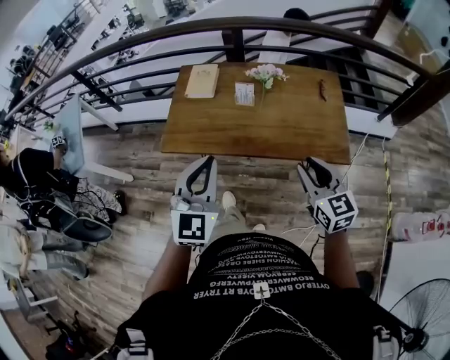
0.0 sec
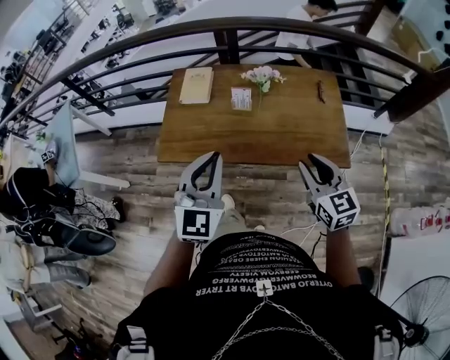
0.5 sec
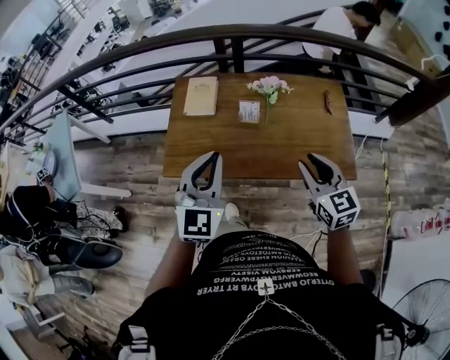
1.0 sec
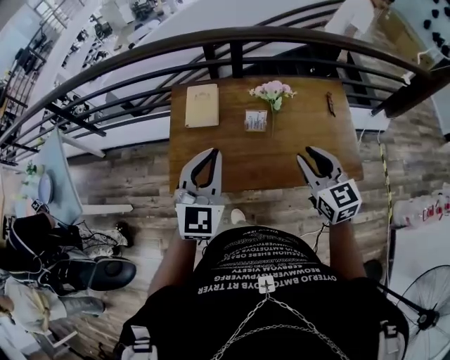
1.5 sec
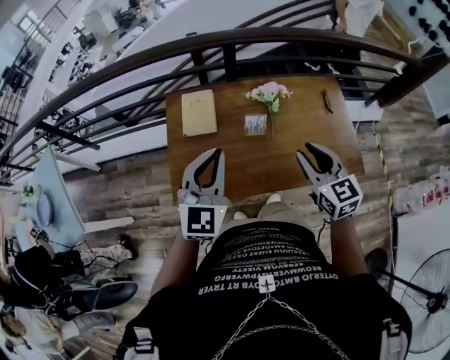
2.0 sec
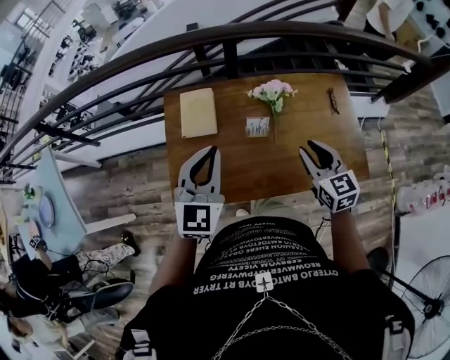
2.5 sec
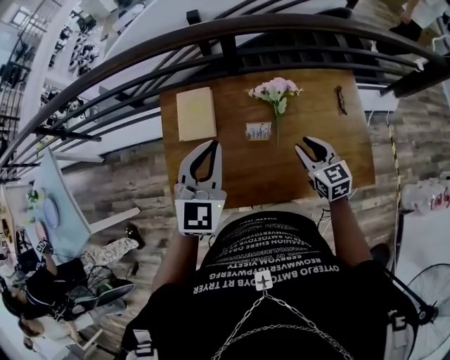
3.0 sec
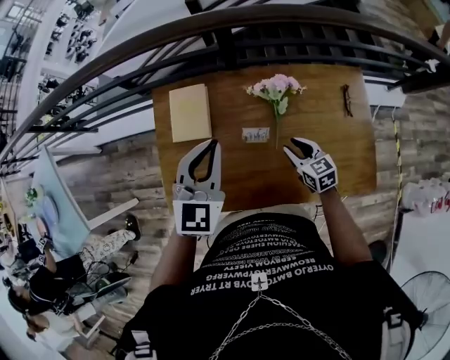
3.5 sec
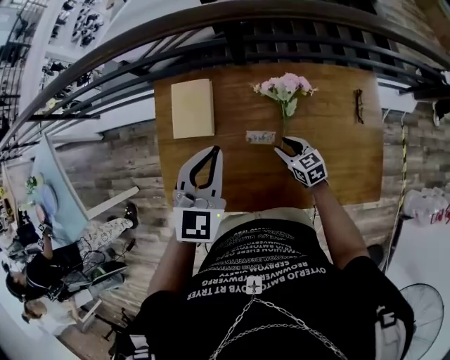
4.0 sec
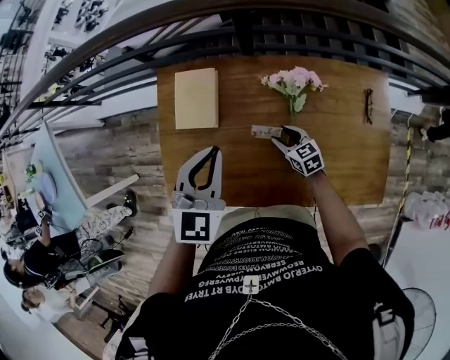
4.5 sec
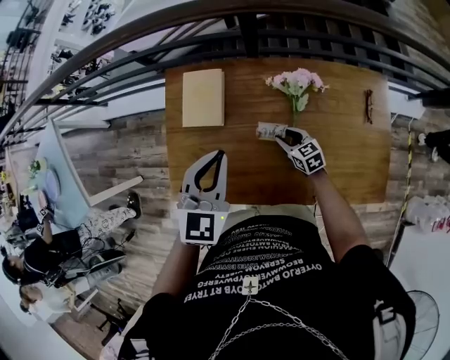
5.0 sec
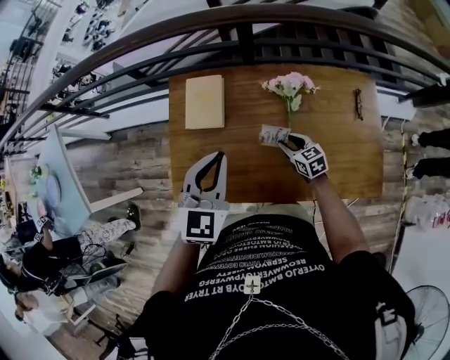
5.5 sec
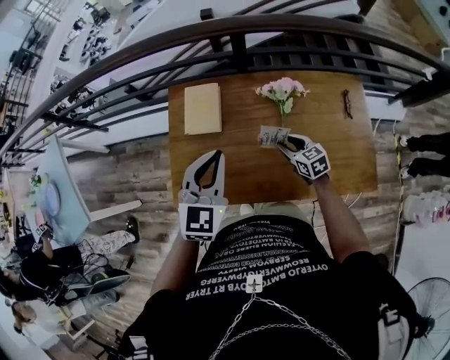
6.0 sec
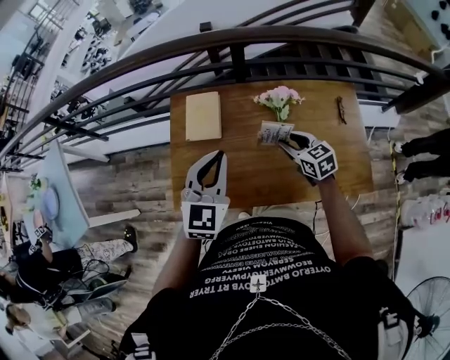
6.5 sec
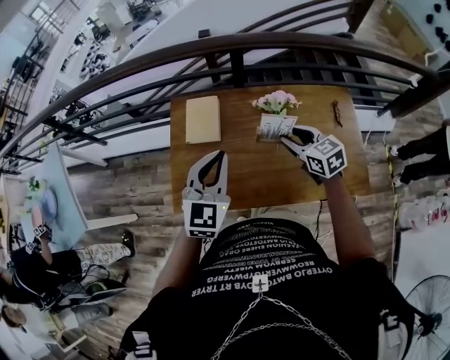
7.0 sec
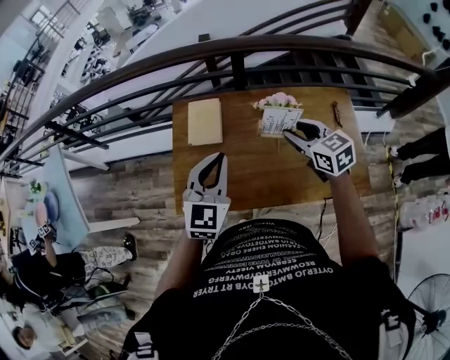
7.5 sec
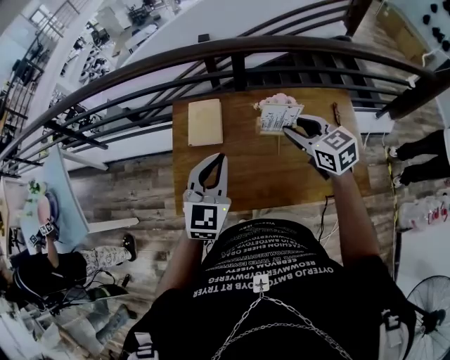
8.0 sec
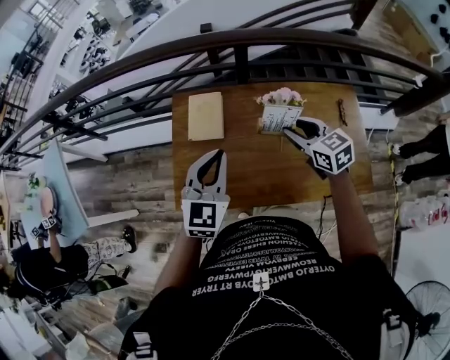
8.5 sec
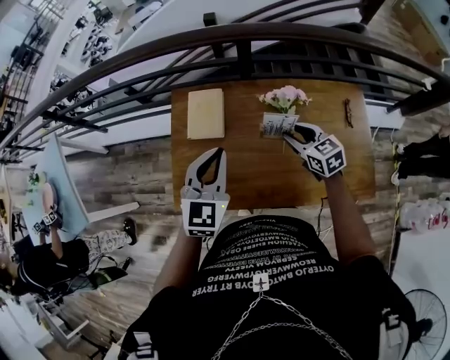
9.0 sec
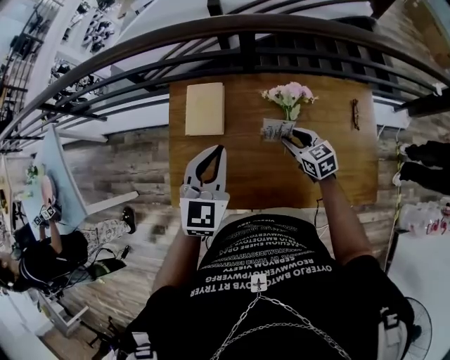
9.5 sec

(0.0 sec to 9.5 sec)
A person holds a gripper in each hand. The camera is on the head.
0.0 sec - 2.0 sec: The right gripper goes roughly 25 cm forward and to the left. Meanwhile the left gripper travels forward by about 25 cm.
2.0 sec - 4.0 sec: The right gripper travels downward and forward by about 35 cm, and turns by approximately 30 degrees. The left gripper goes about 20 cm forward and downward.
4.0 sec - 5.5 sec: The left gripper shifts some 5 cm backward.
5.5 sec - 7.5 sec: The left gripper shifts by about 5 cm. Meanwhile the right gripper heads upward, covering approximately 25 cm.
7.5 sec - 9.5 sec: The right gripper heads downward, covering approximately 20 cm. Meanwhile the left gripper is displaced forward by some 10 cm.

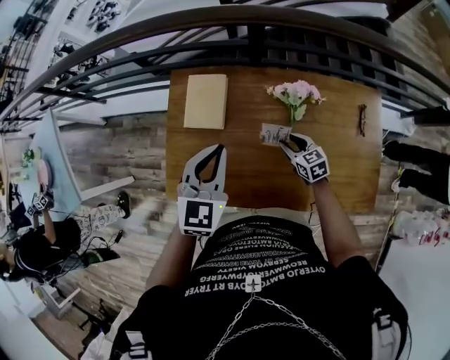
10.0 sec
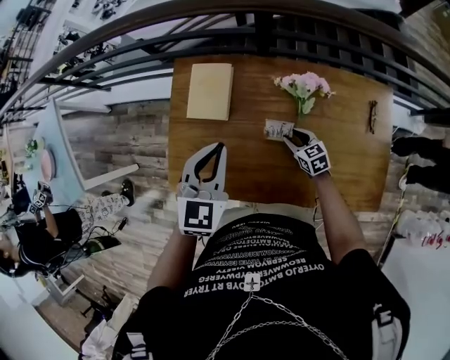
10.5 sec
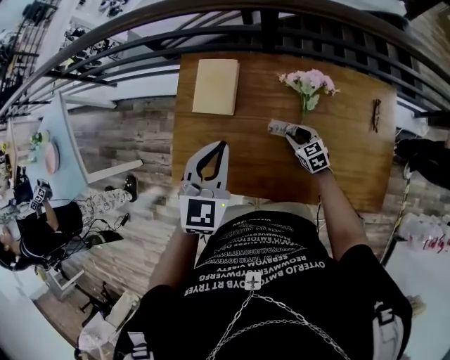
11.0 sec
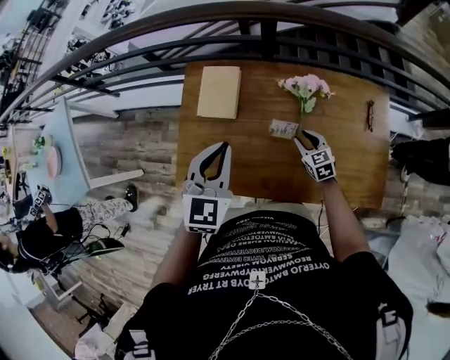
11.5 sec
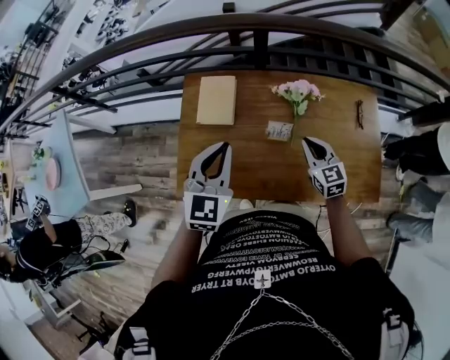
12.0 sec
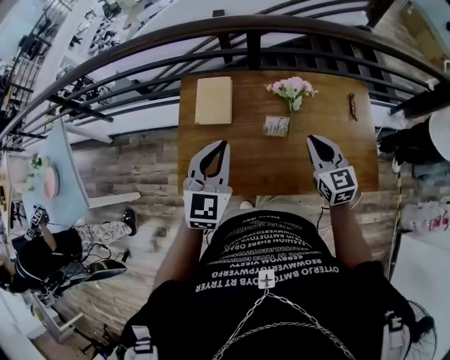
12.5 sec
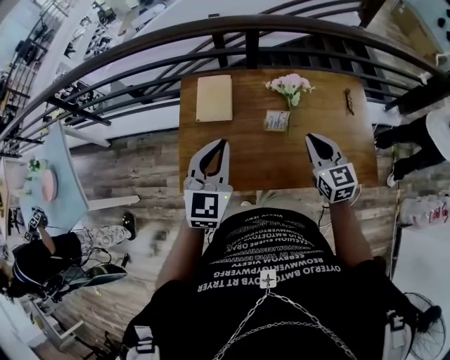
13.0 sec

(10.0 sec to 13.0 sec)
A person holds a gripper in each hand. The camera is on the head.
11.5 sec - 13.0 sec: The right gripper travels upward and backward by about 25 cm, changes its angle by about 20 degrees, and closes its fingers, while the left gripper goes some 5 cm backward.

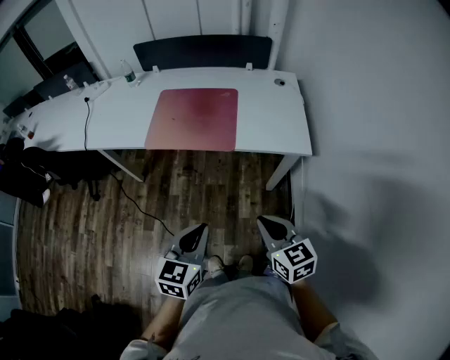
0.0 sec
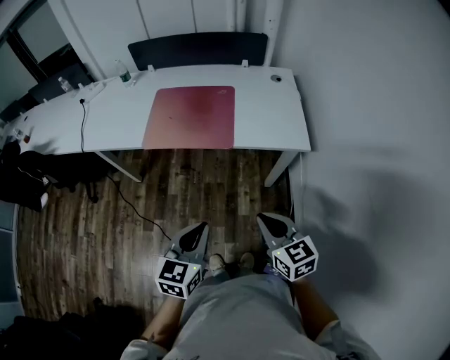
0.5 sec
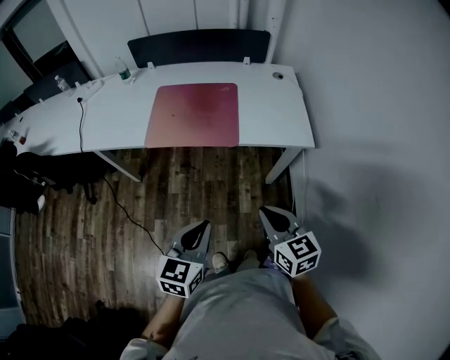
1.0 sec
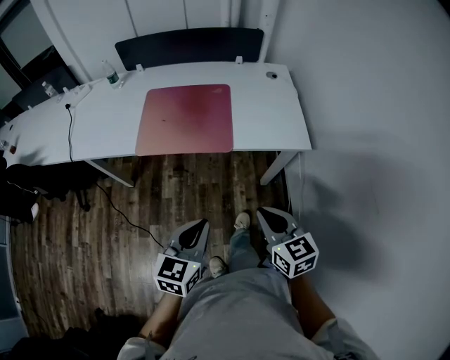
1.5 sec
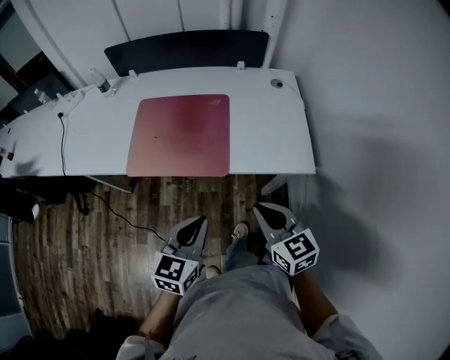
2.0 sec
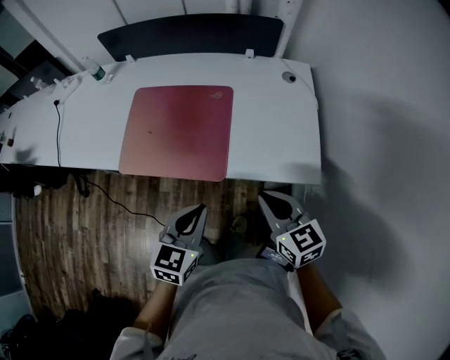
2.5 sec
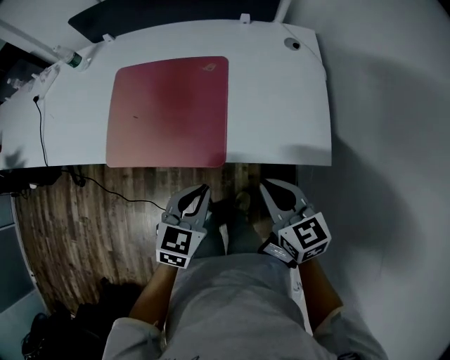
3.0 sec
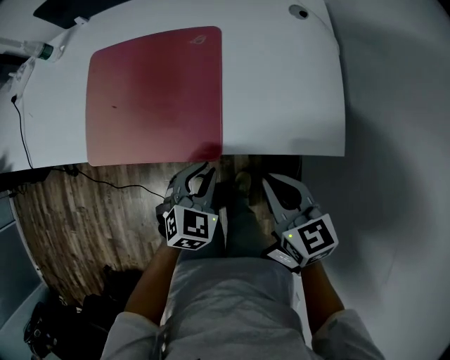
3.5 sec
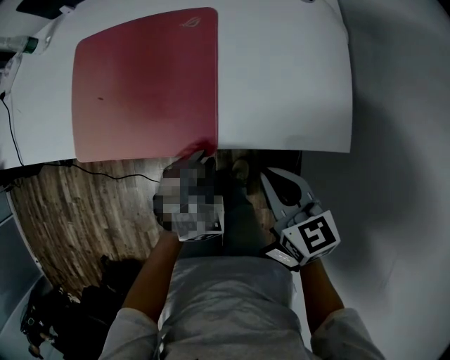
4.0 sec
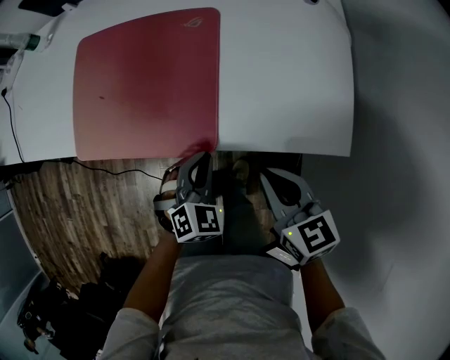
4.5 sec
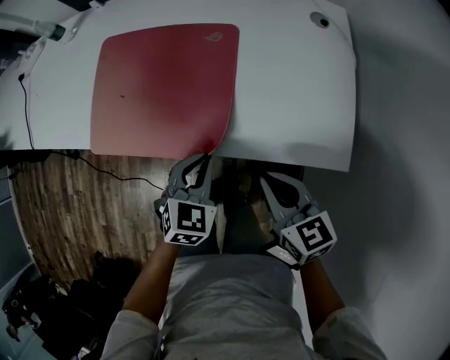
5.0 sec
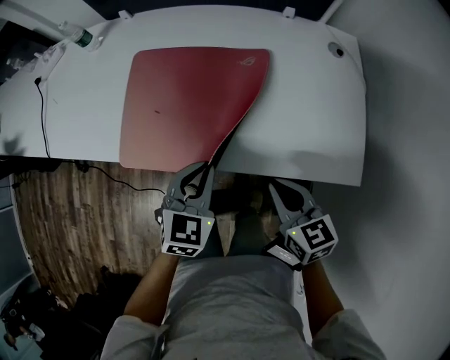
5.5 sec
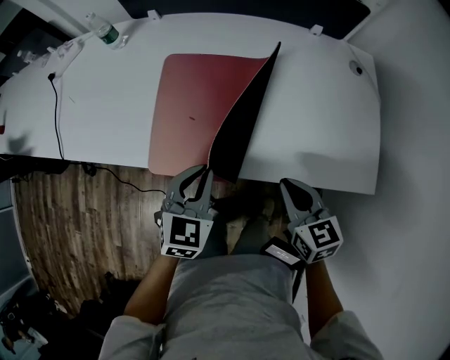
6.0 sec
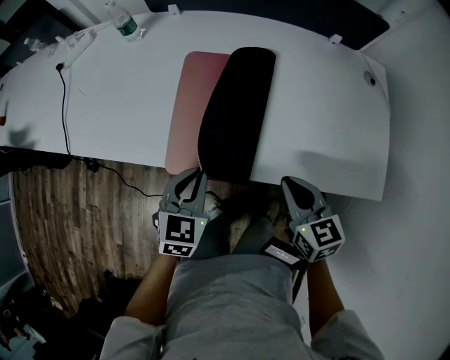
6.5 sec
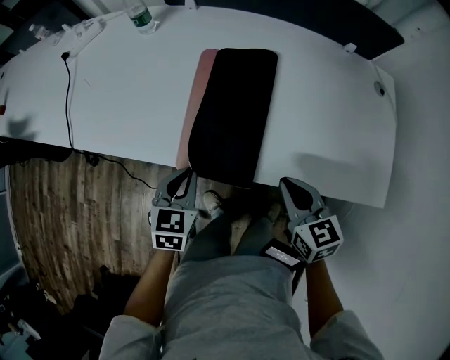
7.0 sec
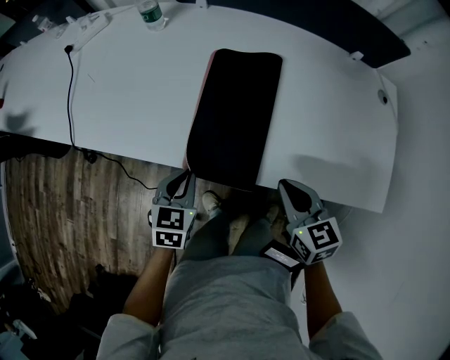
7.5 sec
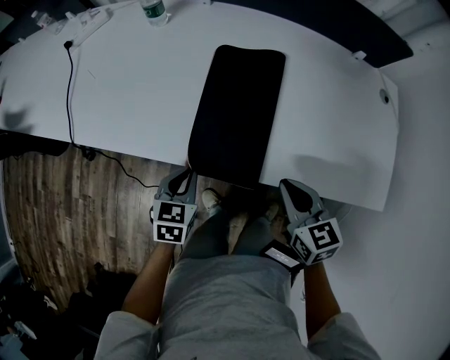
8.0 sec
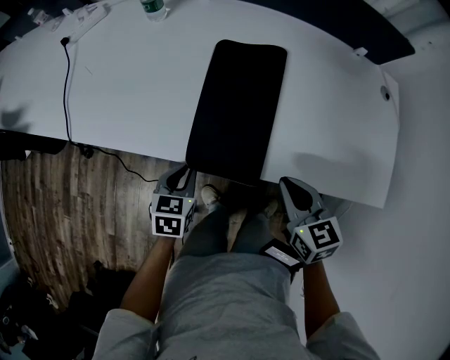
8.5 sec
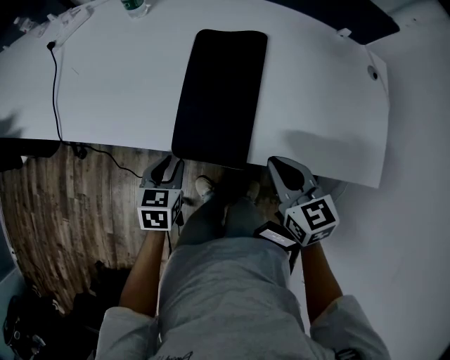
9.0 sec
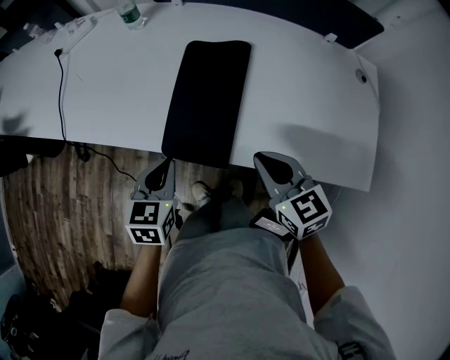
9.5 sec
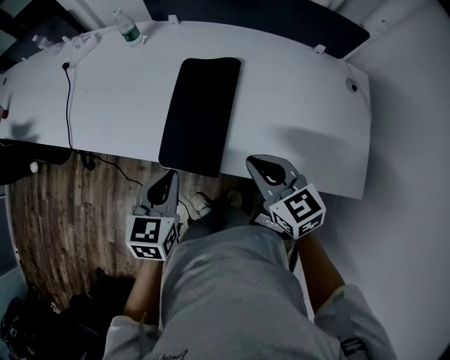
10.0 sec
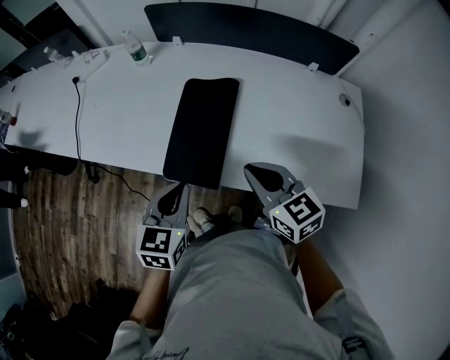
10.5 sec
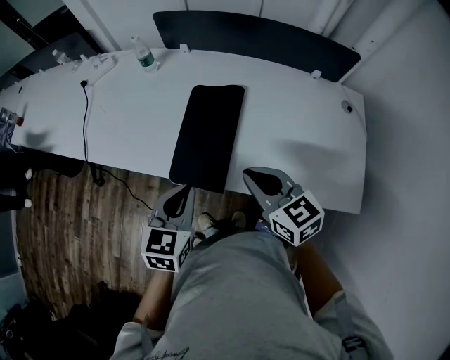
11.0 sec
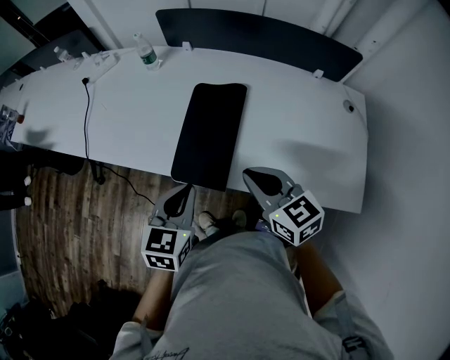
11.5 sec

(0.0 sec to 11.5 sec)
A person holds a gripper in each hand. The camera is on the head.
0.0 sec - 2.0 sec: Both grippers travel together forward, about 20 cm.
2.0 sec - 4.0 sec: The right gripper travels downward and forward by some 20 cm. The left gripper moves downward and forward, roughly 30 cm, swivels roughly 50 degrees, and opens its fingers.
4.0 sec - 6.0 sec: The left gripper is displaced to the left, upward and forward by some 25 cm, swivels roughly 30 degrees, and closes, while the right gripper travels to the left and forward by some 15 cm.
6.0 sec - 7.5 sec: The left gripper heads to the left and downward, covering approximately 20 cm, and changes its angle by approximately 20 degrees, while the right gripper is displaced to the left by approximately 10 cm.
7.5 sec - 9.5 sec: The left gripper is displaced upward by about 5 cm, and opens and closes again.
9.5 sec - 11.5 sec: The left gripper goes some 10 cm upward and to the right. The right gripper moves upward, approximately 10 cm.

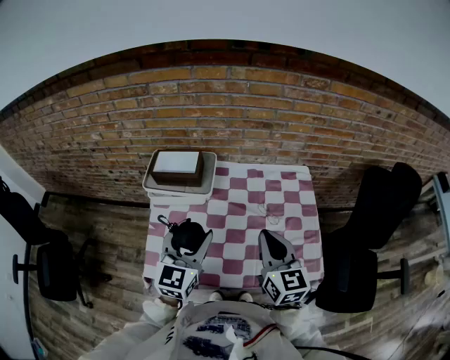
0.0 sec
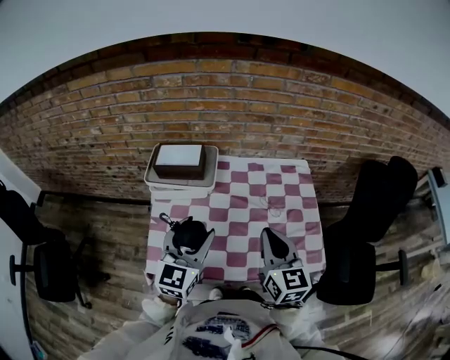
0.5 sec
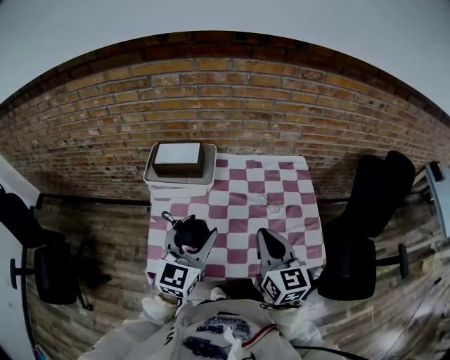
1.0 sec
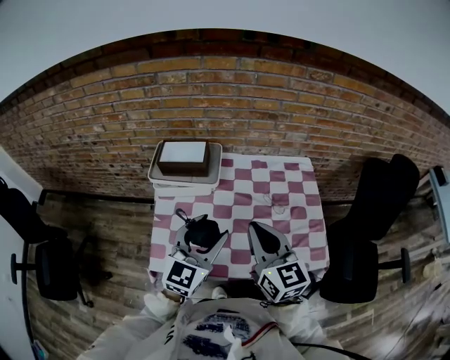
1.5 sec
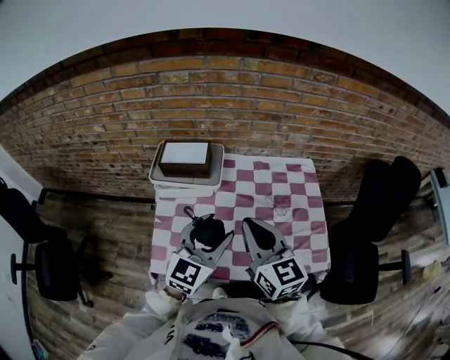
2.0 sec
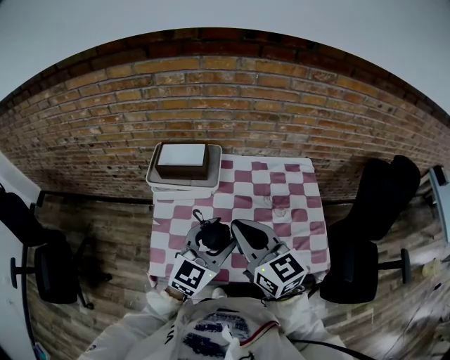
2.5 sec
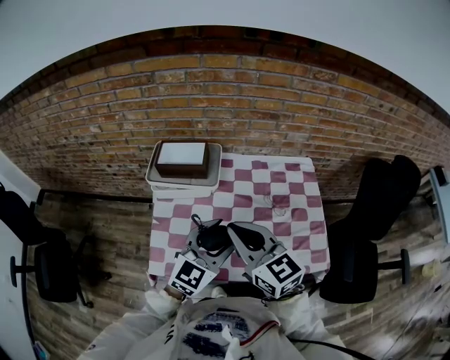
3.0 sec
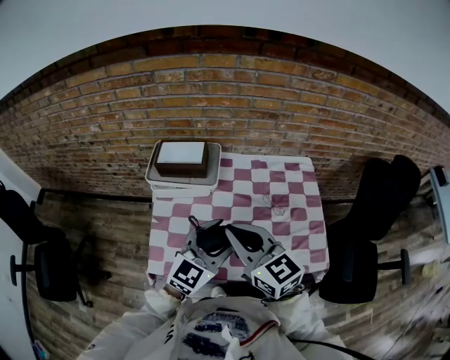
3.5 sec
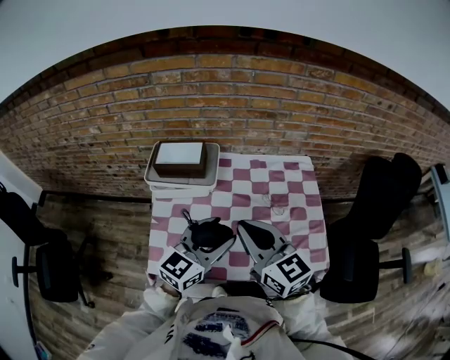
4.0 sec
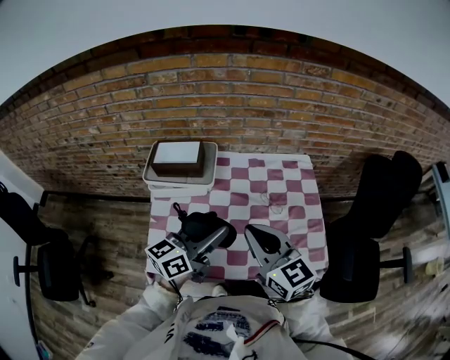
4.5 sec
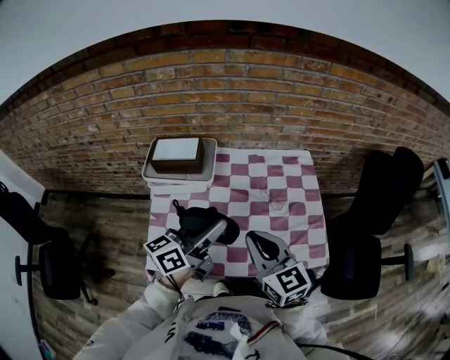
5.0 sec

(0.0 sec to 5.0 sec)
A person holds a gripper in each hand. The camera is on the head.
0.0 sec - 2.5 sec: The left gripper turns by approximately 20 degrees; the right gripper moves to the left, roughly 15 cm.
2.5 sec - 5.0 sec: The right gripper goes roughly 10 cm to the right and downward; the left gripper twists approximately 50 degrees counterclockwise, seen from behind.
